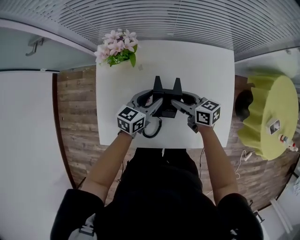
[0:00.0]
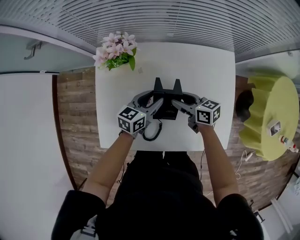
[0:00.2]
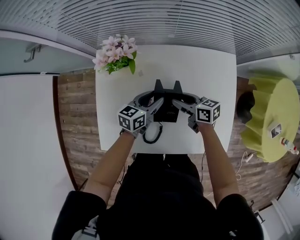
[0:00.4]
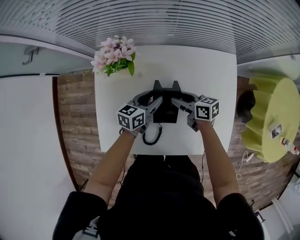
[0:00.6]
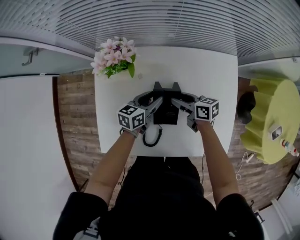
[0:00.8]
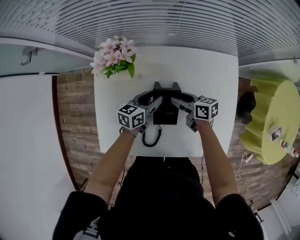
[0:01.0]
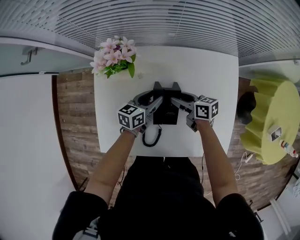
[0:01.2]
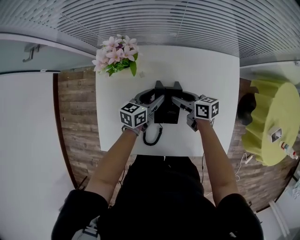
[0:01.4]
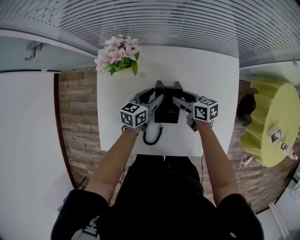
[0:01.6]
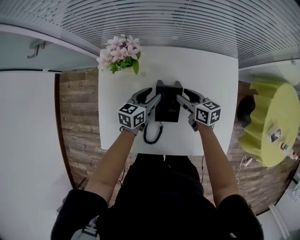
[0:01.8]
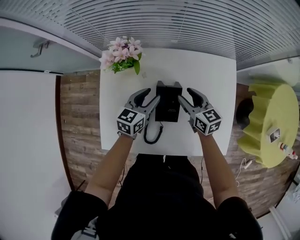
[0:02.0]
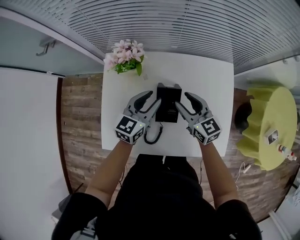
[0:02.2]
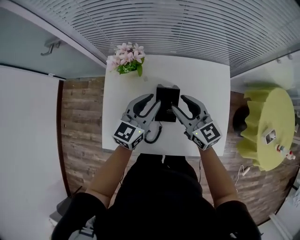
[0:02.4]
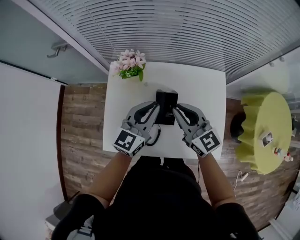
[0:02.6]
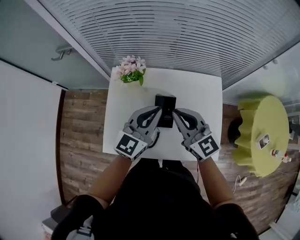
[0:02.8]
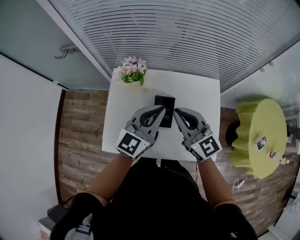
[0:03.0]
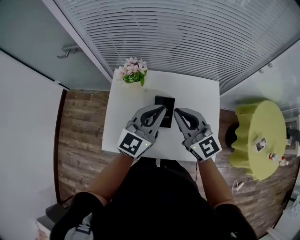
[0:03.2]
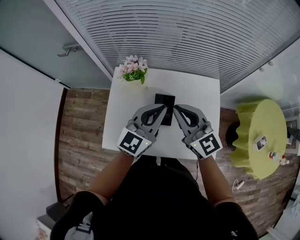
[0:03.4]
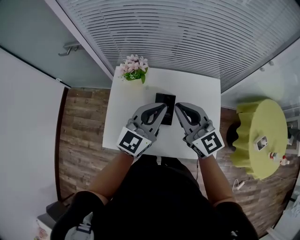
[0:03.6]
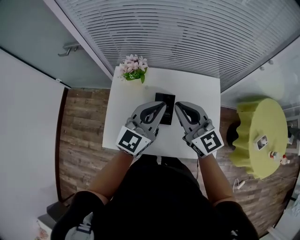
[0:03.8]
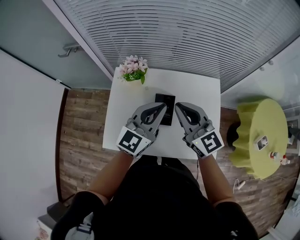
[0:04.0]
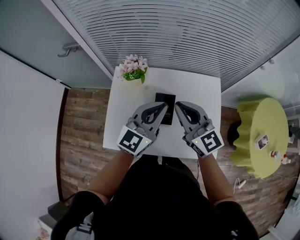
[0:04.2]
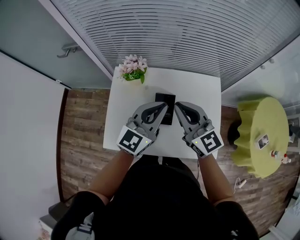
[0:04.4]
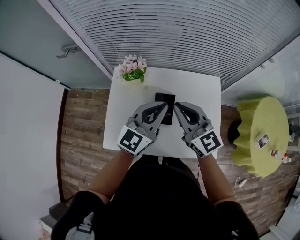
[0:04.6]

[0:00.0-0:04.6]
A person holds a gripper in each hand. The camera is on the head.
0:00.0 to 0:01.6: The right gripper shifts roughly 5 cm downward, while the left gripper is displaced downward and forward by approximately 5 cm.
0:01.6 to 0:03.0: Both grippers travel together upward, approximately 30 cm. The left gripper swivels about 40 degrees, and closes up. The right gripper twists about 50 degrees counterclockwise, seen from behind, and closes.
0:03.0 to 0:04.6: The grippers stay close to where they were, moving slightly.

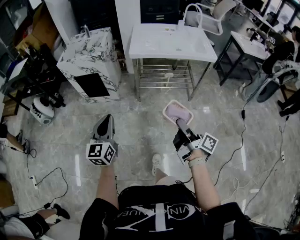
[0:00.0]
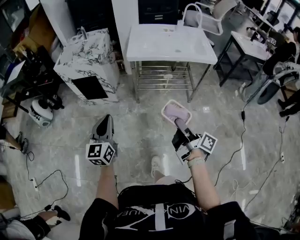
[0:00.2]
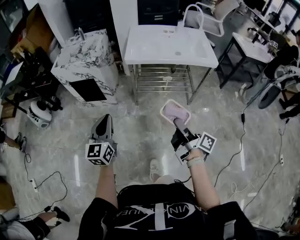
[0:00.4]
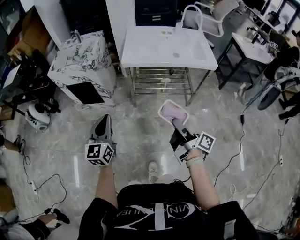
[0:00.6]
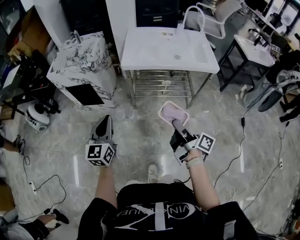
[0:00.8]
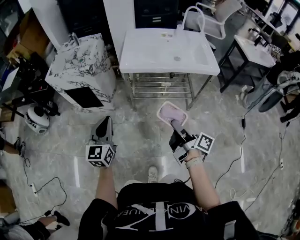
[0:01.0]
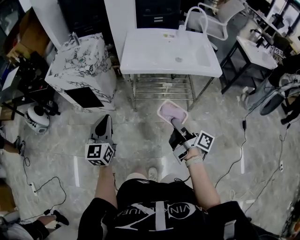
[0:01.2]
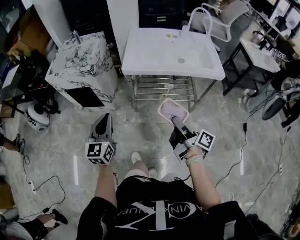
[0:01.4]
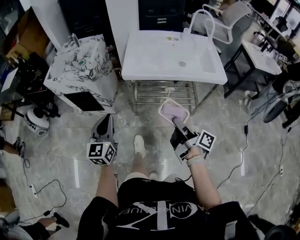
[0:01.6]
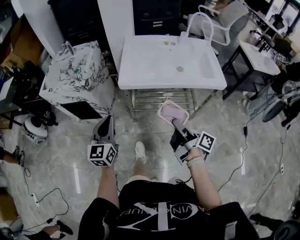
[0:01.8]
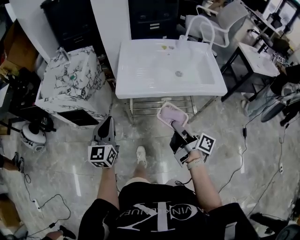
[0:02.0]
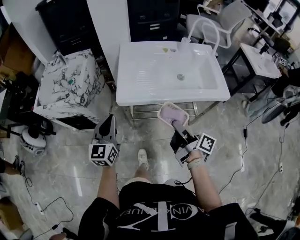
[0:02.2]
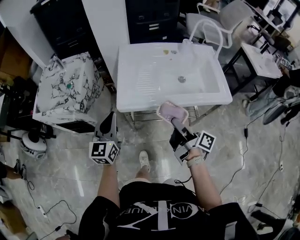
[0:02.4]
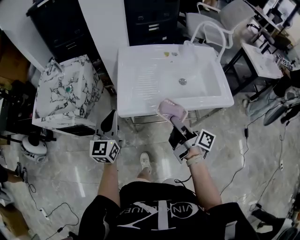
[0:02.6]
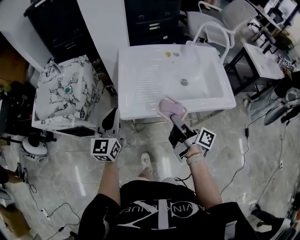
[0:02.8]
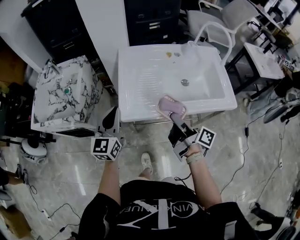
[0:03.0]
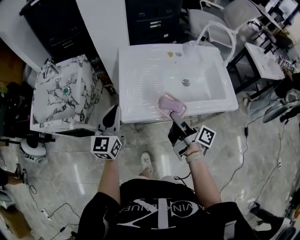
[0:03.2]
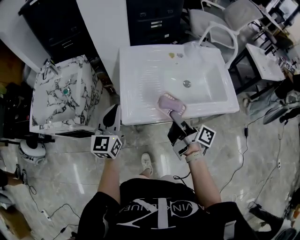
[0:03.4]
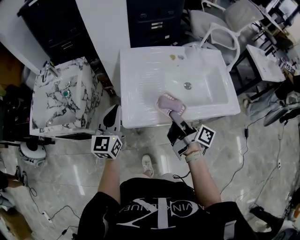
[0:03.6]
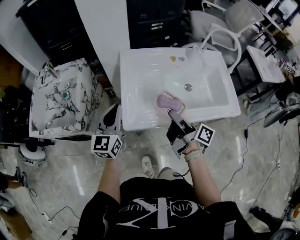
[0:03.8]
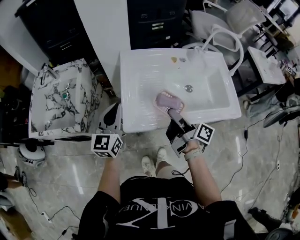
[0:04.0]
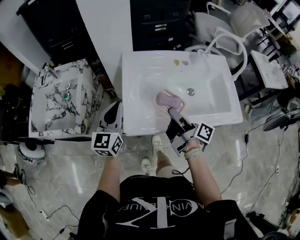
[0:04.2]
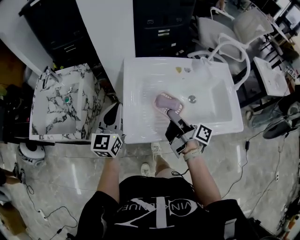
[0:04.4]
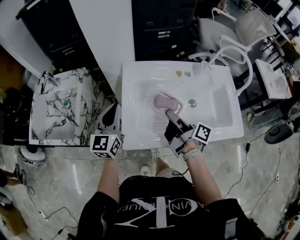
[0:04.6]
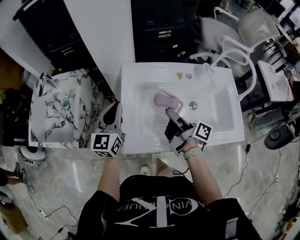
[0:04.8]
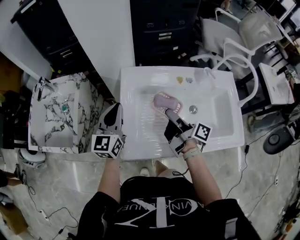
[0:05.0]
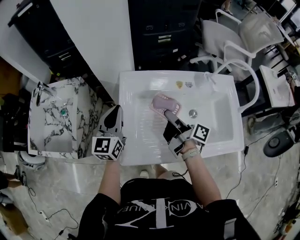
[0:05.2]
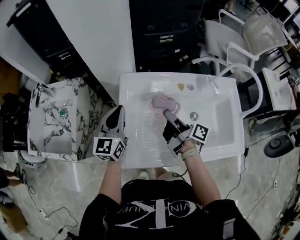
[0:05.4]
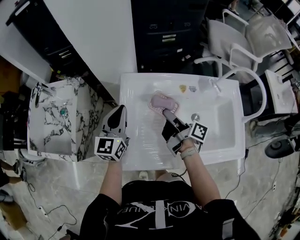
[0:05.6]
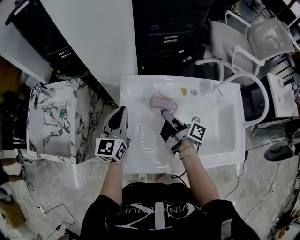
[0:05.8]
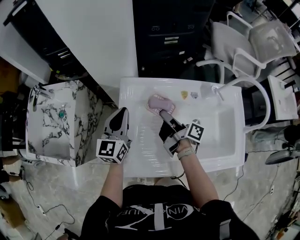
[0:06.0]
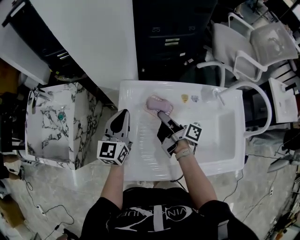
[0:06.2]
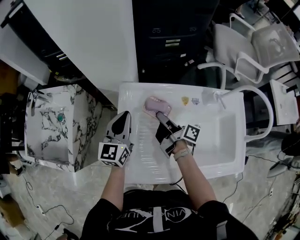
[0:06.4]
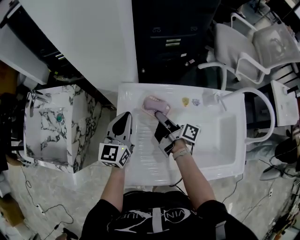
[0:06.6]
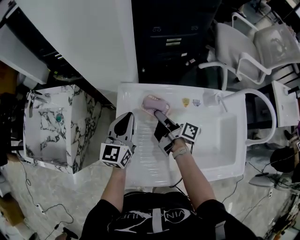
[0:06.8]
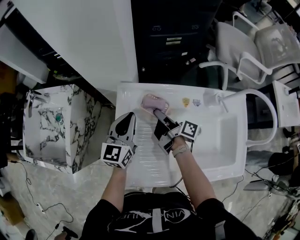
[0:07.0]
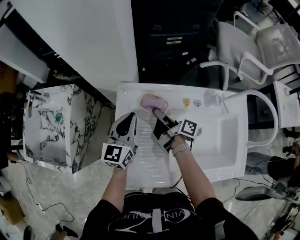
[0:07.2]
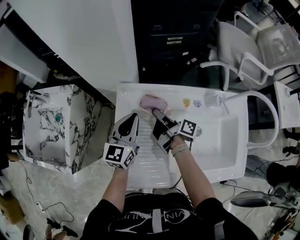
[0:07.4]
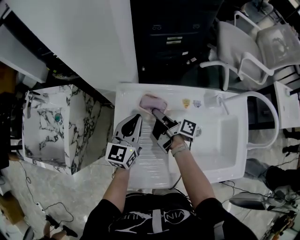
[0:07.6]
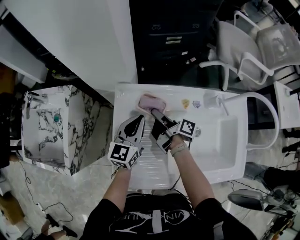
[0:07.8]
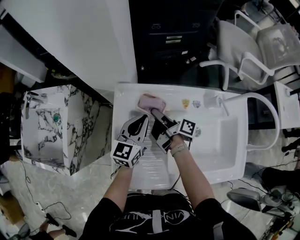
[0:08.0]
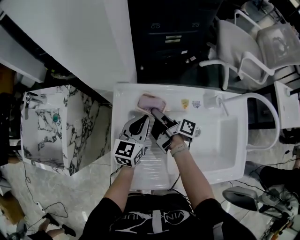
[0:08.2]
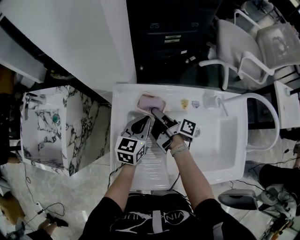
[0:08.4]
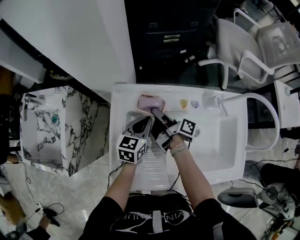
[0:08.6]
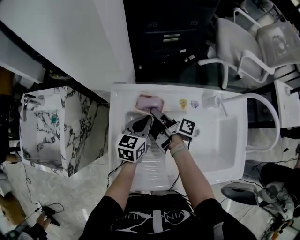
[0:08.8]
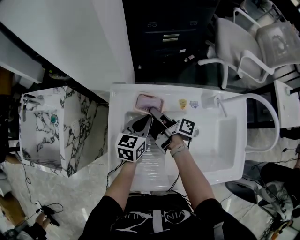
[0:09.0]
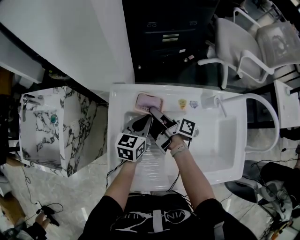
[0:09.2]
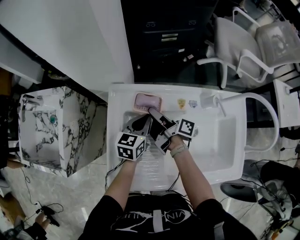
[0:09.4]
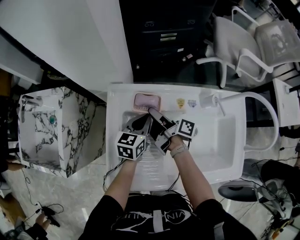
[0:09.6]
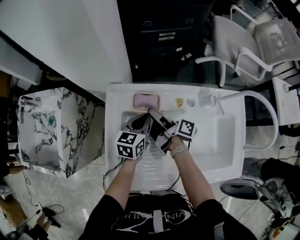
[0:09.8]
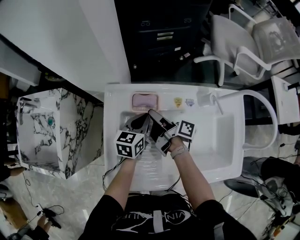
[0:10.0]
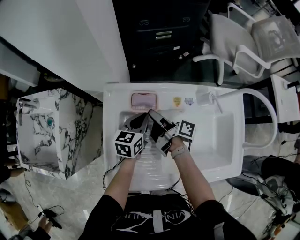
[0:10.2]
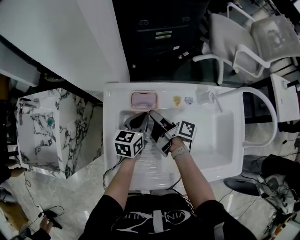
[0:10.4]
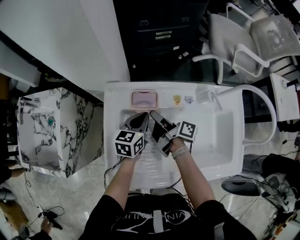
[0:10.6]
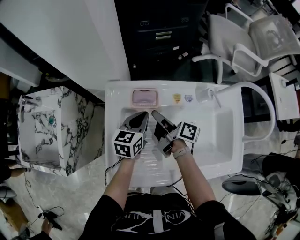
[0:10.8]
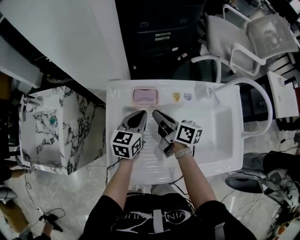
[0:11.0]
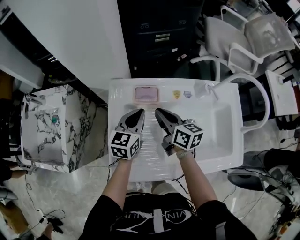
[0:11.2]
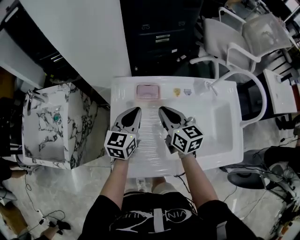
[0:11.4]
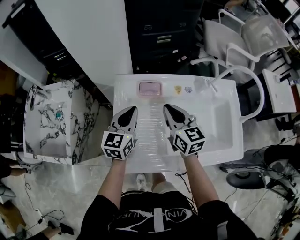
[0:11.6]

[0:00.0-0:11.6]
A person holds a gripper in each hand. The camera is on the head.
0:00.0 to 0:01.4: The left gripper shifts by about 20 cm.
0:01.4 to 0:02.8: The left gripper changes place by approximately 35 cm.
0:02.8 to 0:04.4: The left gripper ends up about 15 cm from where it was.
0:04.4 to 0:05.8: The left gripper shifts by approximately 15 cm.
0:05.8 to 0:07.2: The left gripper moves about 5 cm.
0:07.2 to 0:08.8: The left gripper changes place by roughly 15 cm, and swivels about 20 degrees.
0:10.2 to 0:11.6: The left gripper moves upward, some 10 cm, and rotates approximately 20 degrees.

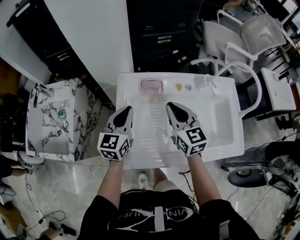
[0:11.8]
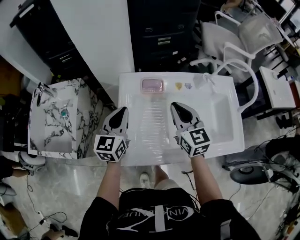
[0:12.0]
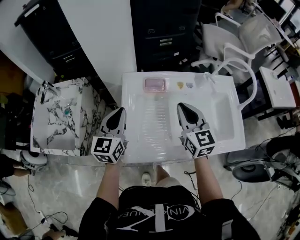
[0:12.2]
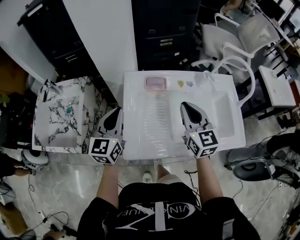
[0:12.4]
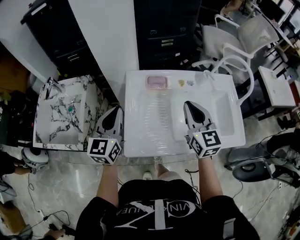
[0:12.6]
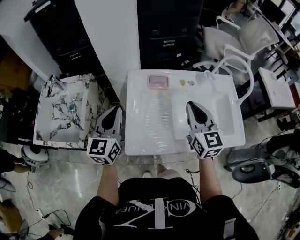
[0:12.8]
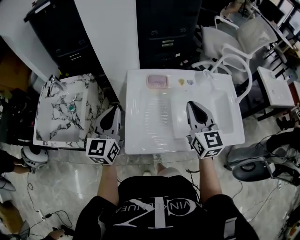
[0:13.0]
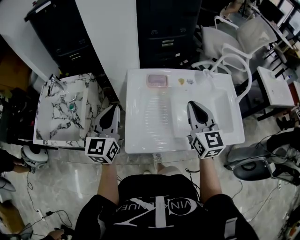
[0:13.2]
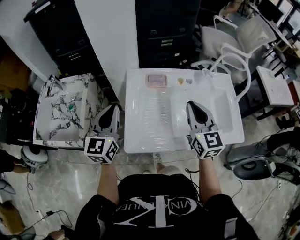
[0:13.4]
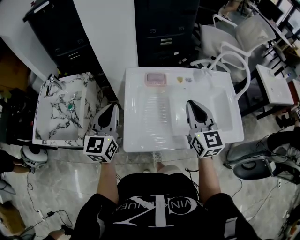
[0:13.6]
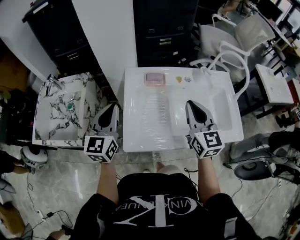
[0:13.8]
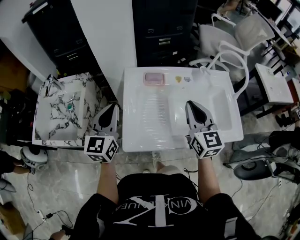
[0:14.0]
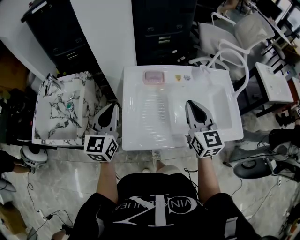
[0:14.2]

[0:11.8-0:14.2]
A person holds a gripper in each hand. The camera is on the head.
0:11.8 to 0:13.0: The left gripper moves roughly 15 cm.

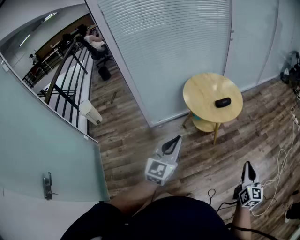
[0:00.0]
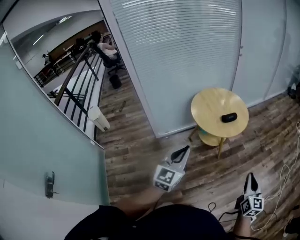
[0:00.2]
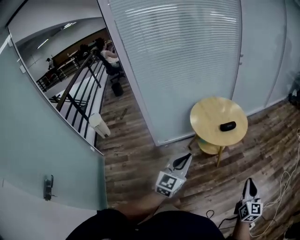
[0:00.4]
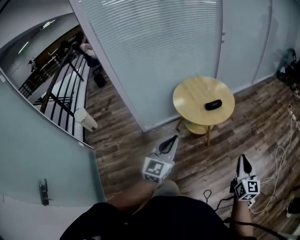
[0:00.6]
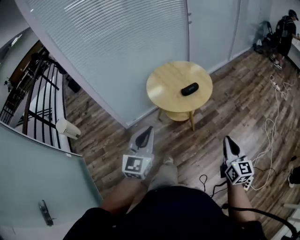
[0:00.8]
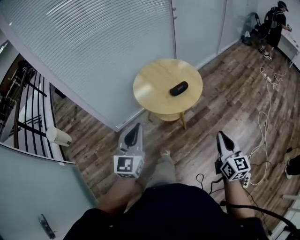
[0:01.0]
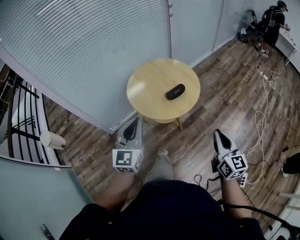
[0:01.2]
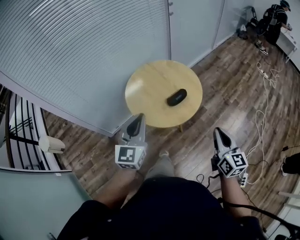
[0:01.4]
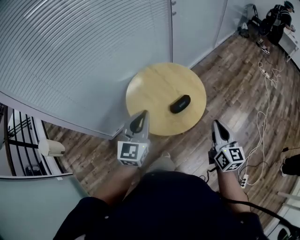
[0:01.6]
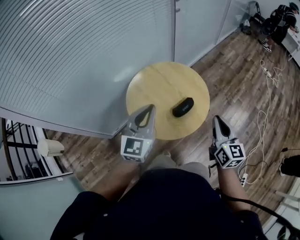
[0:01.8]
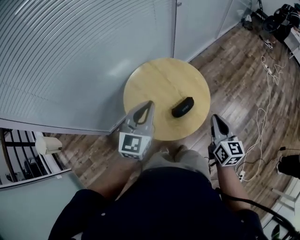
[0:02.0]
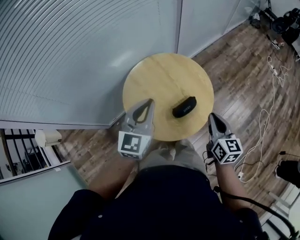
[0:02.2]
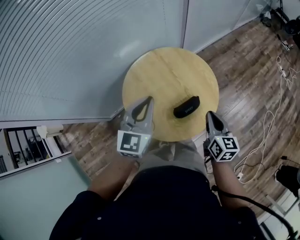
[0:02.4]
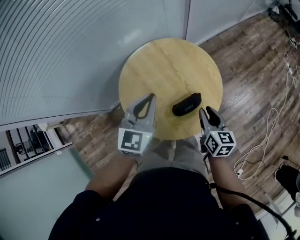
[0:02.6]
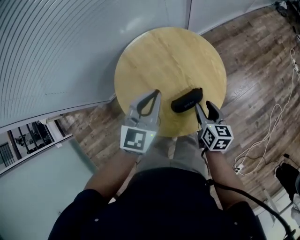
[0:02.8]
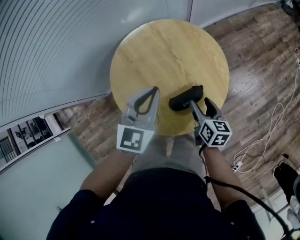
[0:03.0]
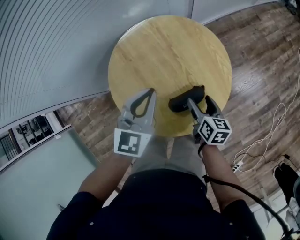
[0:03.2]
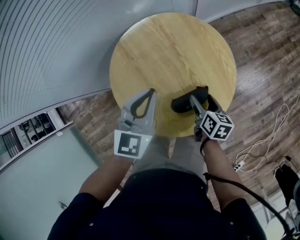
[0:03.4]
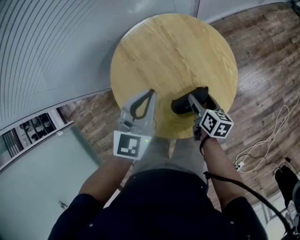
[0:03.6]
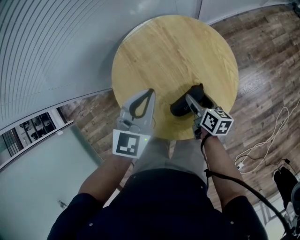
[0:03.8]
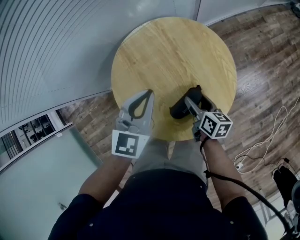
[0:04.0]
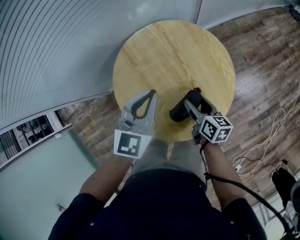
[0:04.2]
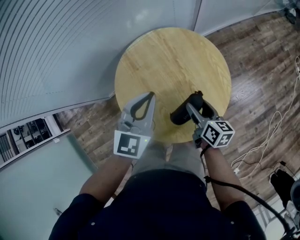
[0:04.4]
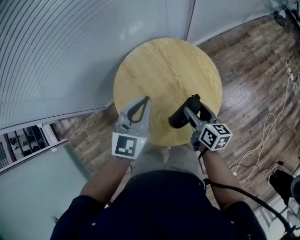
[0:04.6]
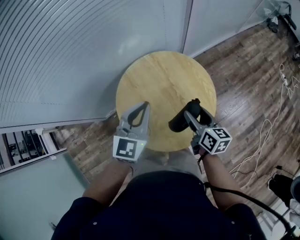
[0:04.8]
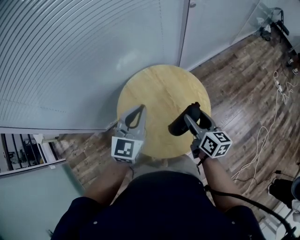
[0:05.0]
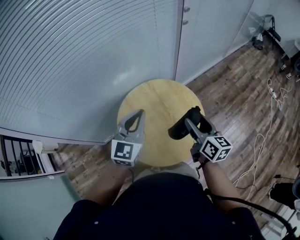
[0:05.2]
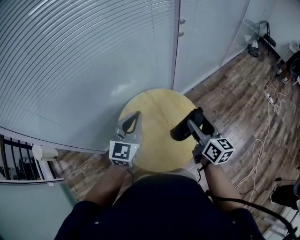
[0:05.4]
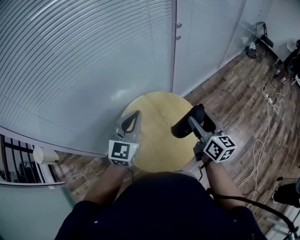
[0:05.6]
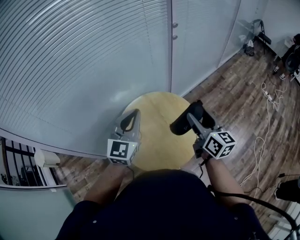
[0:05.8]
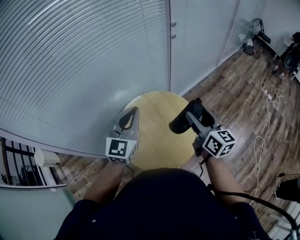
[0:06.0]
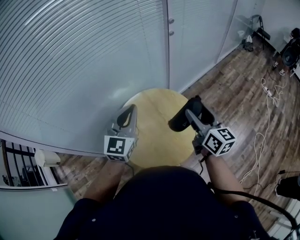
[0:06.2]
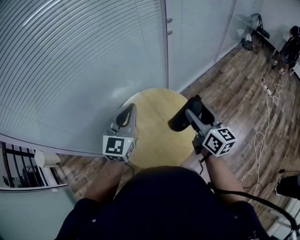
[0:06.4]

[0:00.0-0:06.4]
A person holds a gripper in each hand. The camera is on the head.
0:00.0 to 0:01.6: Both grippers move forward, about 35 cm.
0:01.6 to 0:03.2: The left gripper is displaced forward, downward and to the right by approximately 30 cm. Meanwhile the right gripper heads downward and forward, covering roughly 40 cm, swivels about 40 degrees, and opens up.
0:03.2 to 0:04.8: The left gripper heads upward, covering approximately 10 cm. The right gripper moves upward, about 15 cm.
0:04.8 to 0:06.4: The left gripper goes approximately 15 cm upward. The right gripper goes approximately 20 cm upward, and rotates about 30 degrees.
